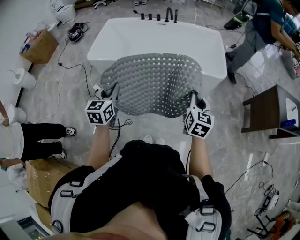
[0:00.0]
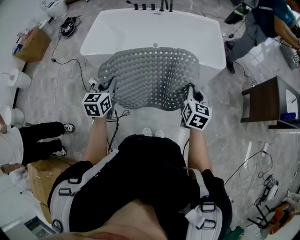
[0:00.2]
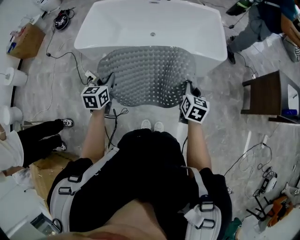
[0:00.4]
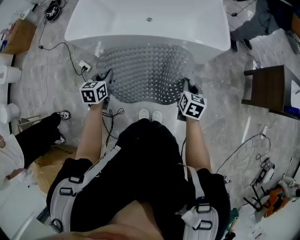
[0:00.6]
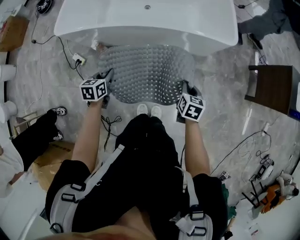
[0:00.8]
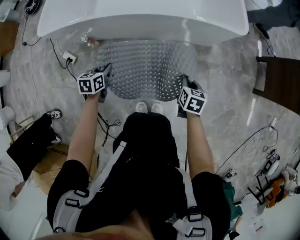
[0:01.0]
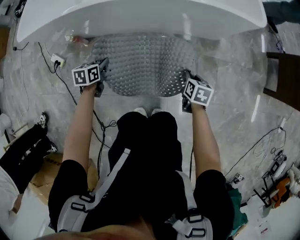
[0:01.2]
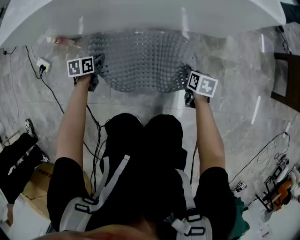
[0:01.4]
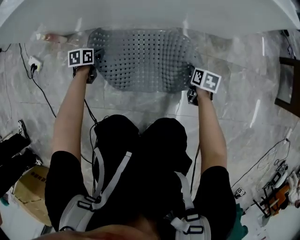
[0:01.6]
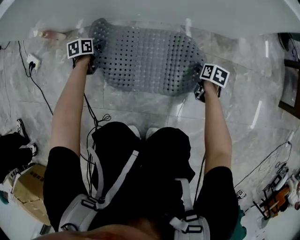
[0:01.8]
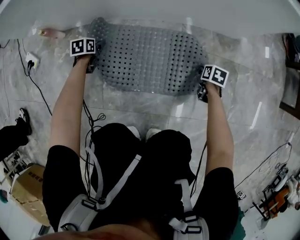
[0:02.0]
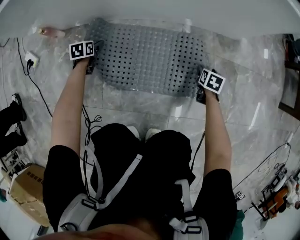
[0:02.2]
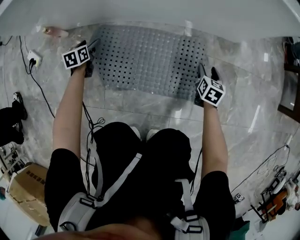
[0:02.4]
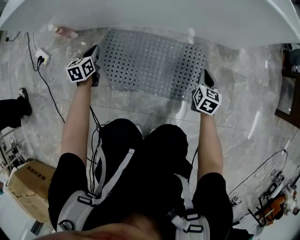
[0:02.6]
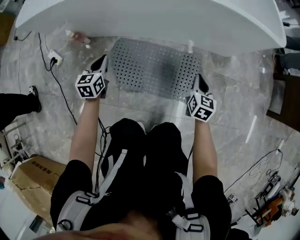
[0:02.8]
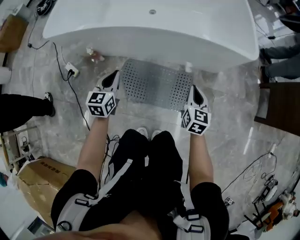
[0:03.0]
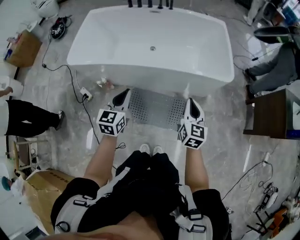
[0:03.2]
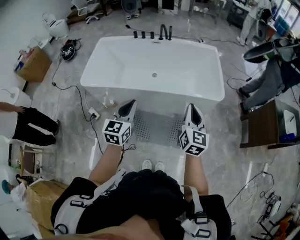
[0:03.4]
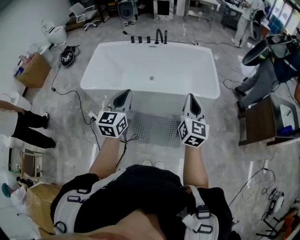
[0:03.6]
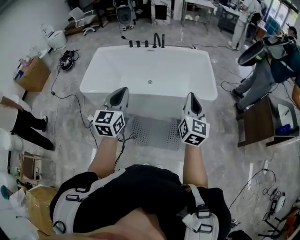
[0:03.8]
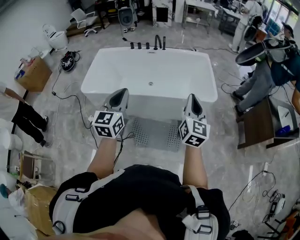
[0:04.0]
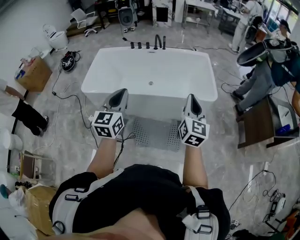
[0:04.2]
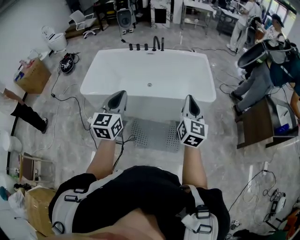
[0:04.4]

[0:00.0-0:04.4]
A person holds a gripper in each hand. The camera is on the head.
0:00.0 to 0:01.4: Both grippers move downward, about 70 cm. The left gripper tilts its fingers some 40 degrees downward. The right gripper angles its fingers downward, by about 40 degrees.
0:01.4 to 0:03.0: The two grippers go roughly 35 cm upward. The left gripper swivels some 40 degrees, and opens and closes again. The right gripper changes its angle by about 40 degrees, and opens and closes again.
0:03.0 to 0:04.4: Both grippers travel together upward, approximately 50 cm. The right gripper rotates approximately 30 degrees. Meanwhile the left gripper swivels roughly 20 degrees.

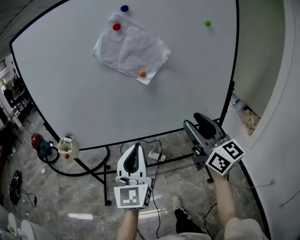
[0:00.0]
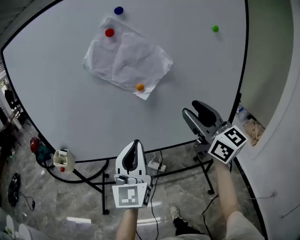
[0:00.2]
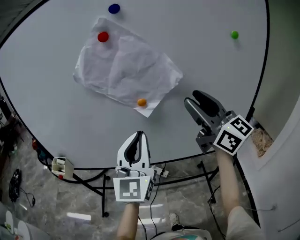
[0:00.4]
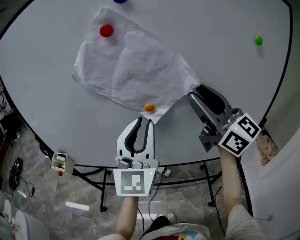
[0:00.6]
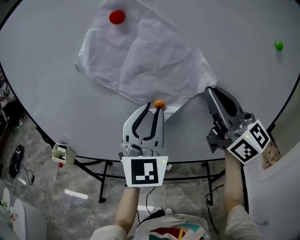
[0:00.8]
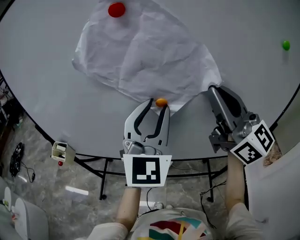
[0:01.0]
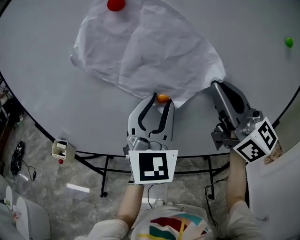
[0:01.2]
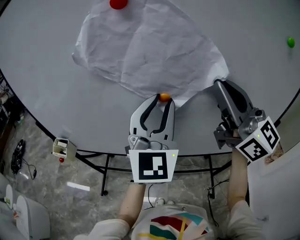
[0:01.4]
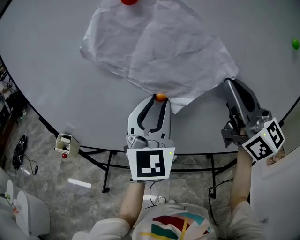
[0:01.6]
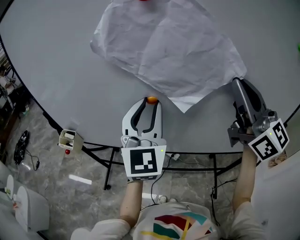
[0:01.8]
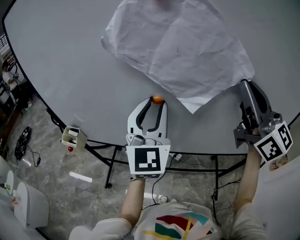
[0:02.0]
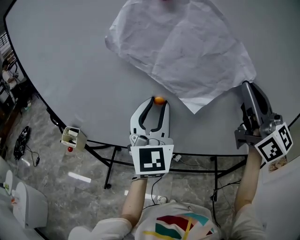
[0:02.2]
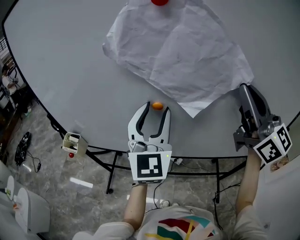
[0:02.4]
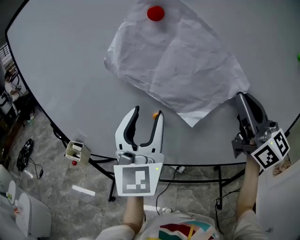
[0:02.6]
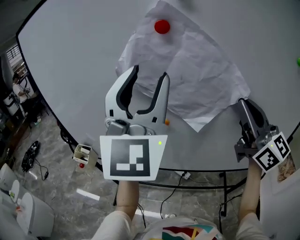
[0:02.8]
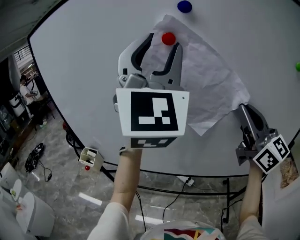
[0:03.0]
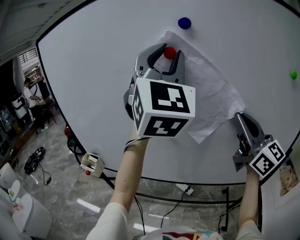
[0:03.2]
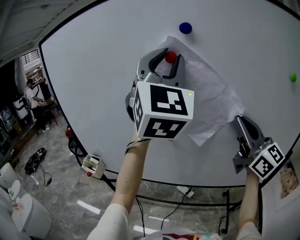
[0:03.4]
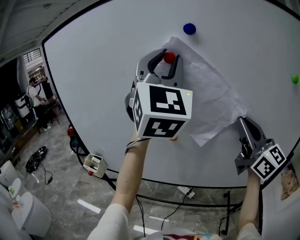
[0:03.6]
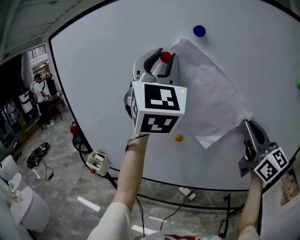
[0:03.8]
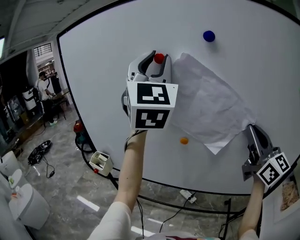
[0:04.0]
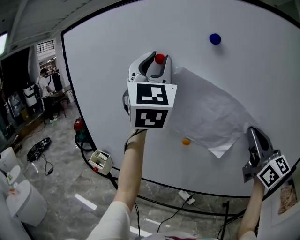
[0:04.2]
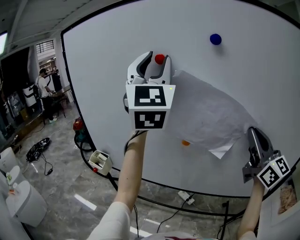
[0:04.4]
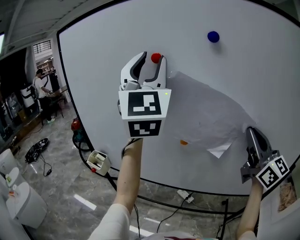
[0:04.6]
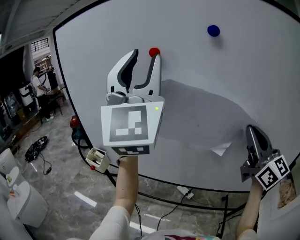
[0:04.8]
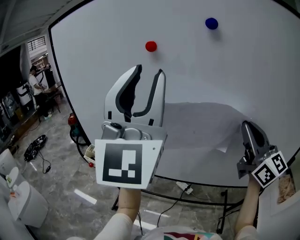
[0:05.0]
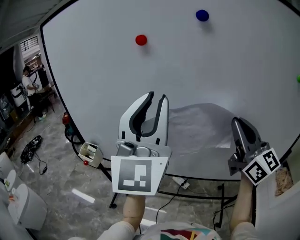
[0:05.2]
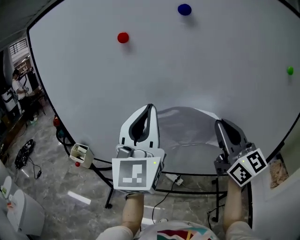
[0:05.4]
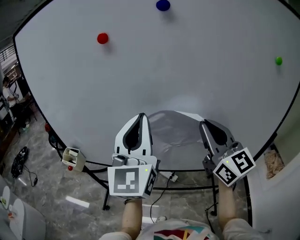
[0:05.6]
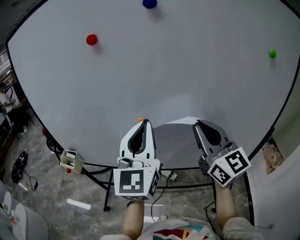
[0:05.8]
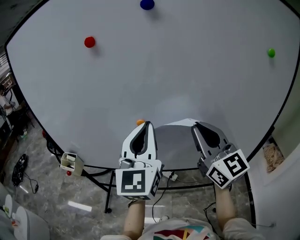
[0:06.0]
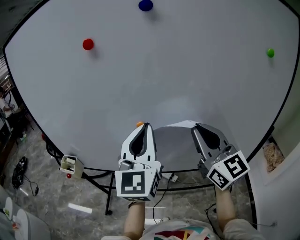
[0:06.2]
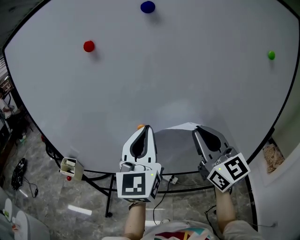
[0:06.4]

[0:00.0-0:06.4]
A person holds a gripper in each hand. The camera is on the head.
0:00.0 to 0:01.6: The right gripper heads forward and upward, covering some 30 cm, and closes, while the left gripper travels forward by about 30 cm, turns by approximately 20 degrees, and opens its fingers.
0:01.6 to 0:03.2: The left gripper moves upward, about 25 cm.
0:03.2 to 0:04.8: The left gripper travels to the left by some 10 cm.
0:04.8 to 0:06.4: The right gripper goes roughly 5 cm downward, while the left gripper is displaced downward and to the right by some 25 cm, turns by approximately 30 degrees, and closes up.

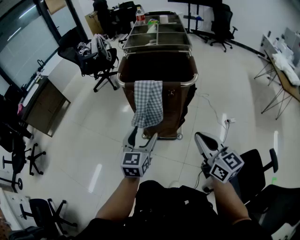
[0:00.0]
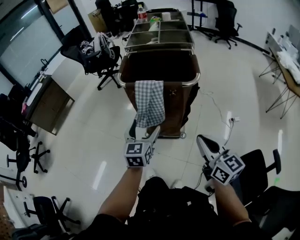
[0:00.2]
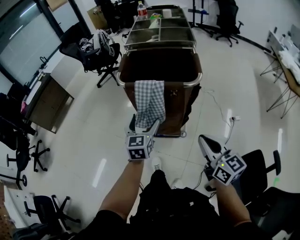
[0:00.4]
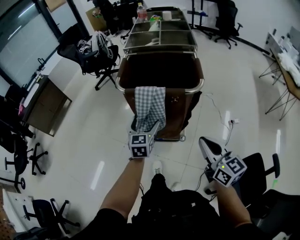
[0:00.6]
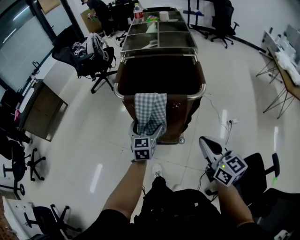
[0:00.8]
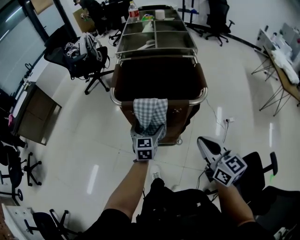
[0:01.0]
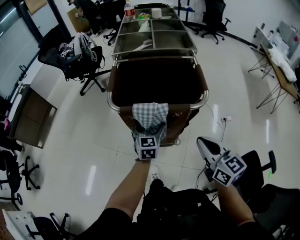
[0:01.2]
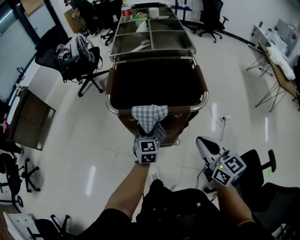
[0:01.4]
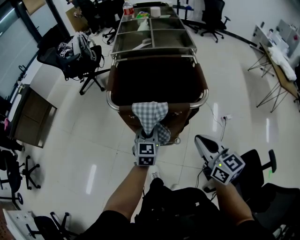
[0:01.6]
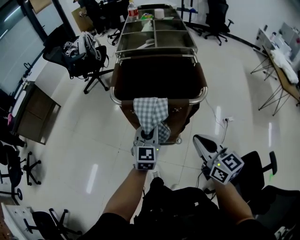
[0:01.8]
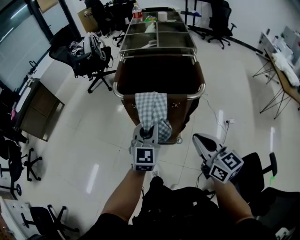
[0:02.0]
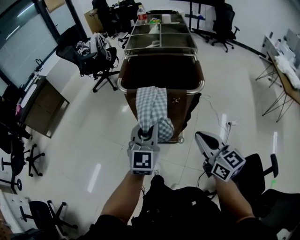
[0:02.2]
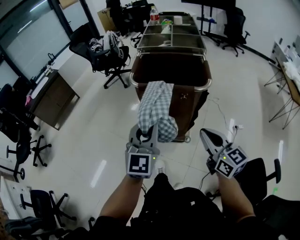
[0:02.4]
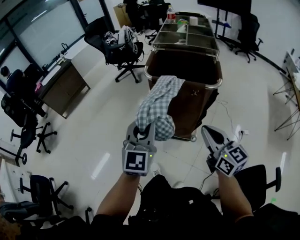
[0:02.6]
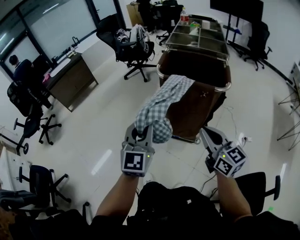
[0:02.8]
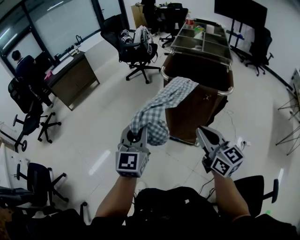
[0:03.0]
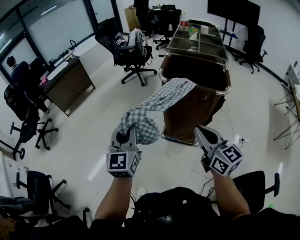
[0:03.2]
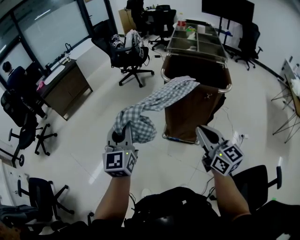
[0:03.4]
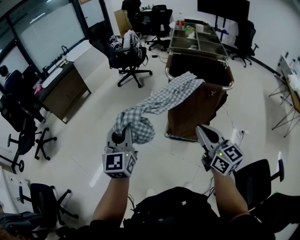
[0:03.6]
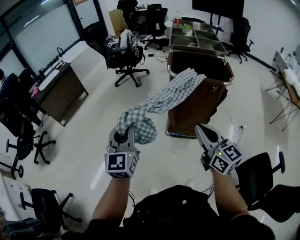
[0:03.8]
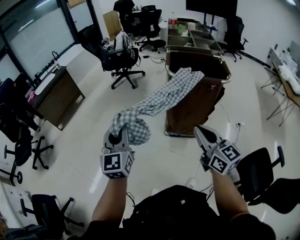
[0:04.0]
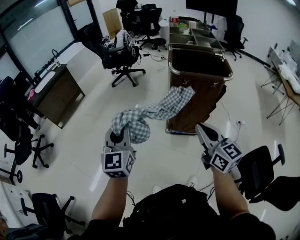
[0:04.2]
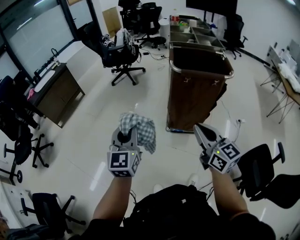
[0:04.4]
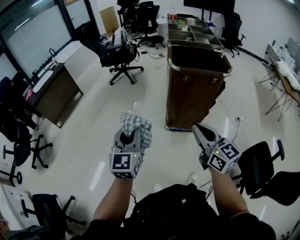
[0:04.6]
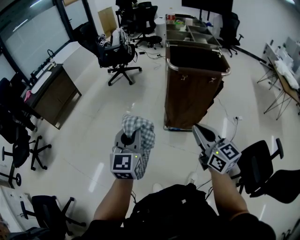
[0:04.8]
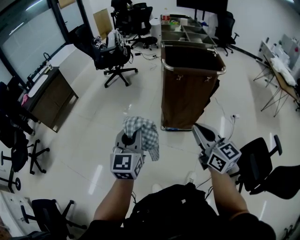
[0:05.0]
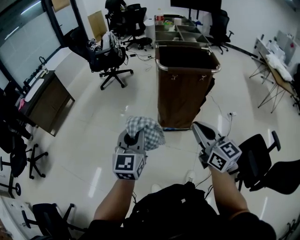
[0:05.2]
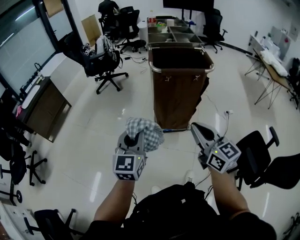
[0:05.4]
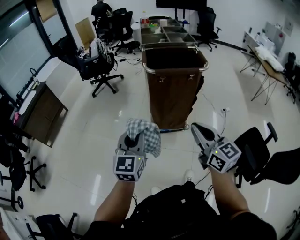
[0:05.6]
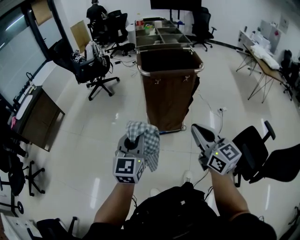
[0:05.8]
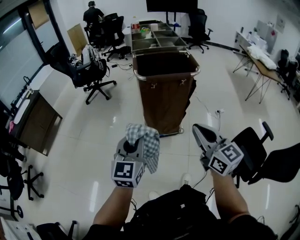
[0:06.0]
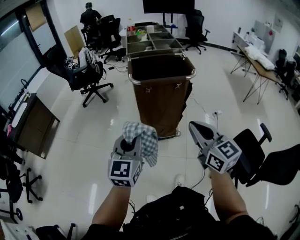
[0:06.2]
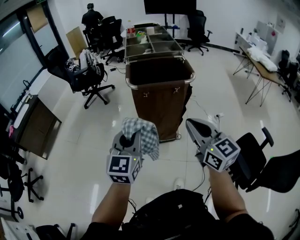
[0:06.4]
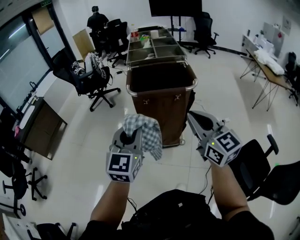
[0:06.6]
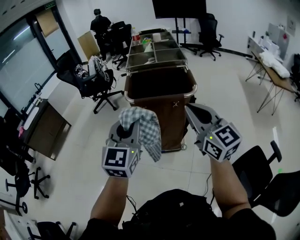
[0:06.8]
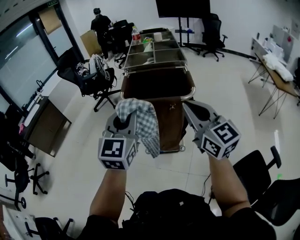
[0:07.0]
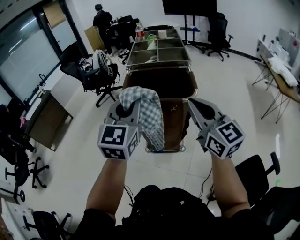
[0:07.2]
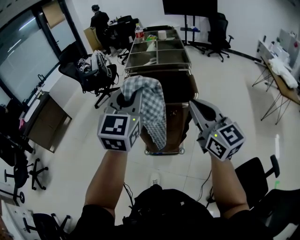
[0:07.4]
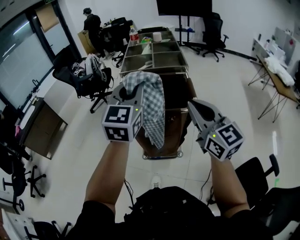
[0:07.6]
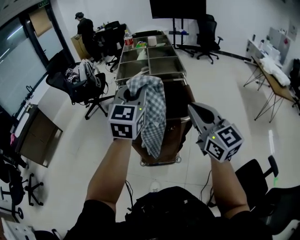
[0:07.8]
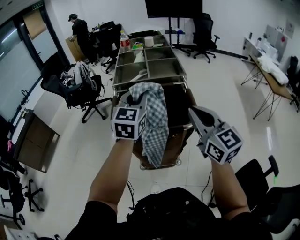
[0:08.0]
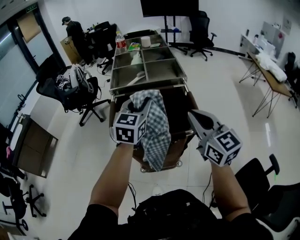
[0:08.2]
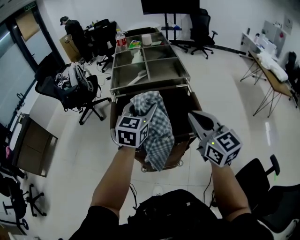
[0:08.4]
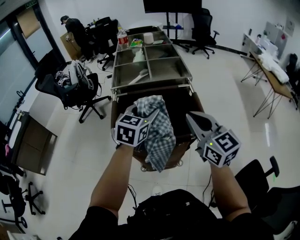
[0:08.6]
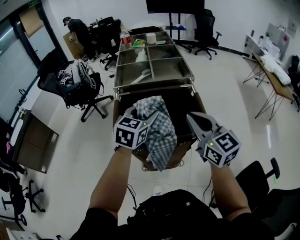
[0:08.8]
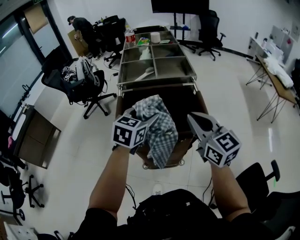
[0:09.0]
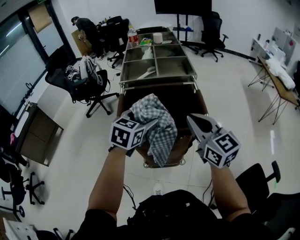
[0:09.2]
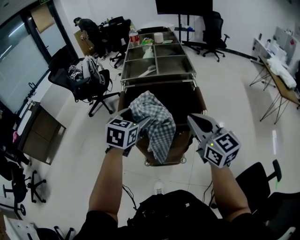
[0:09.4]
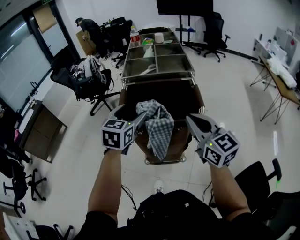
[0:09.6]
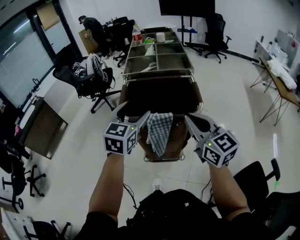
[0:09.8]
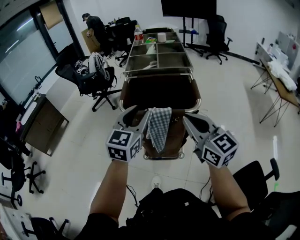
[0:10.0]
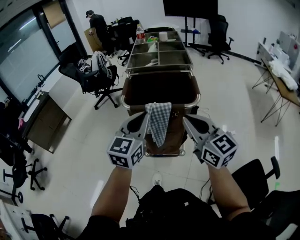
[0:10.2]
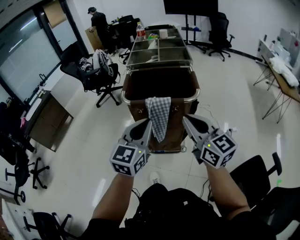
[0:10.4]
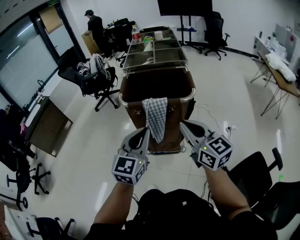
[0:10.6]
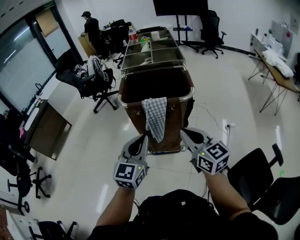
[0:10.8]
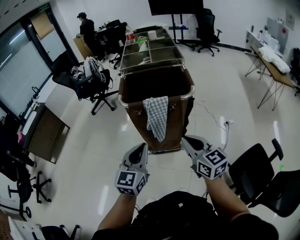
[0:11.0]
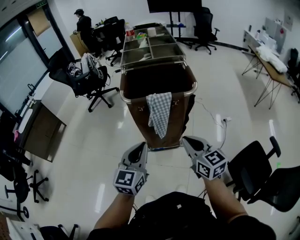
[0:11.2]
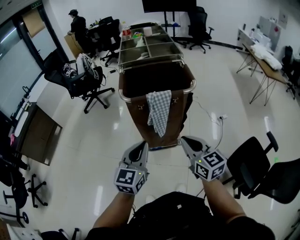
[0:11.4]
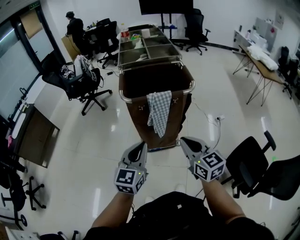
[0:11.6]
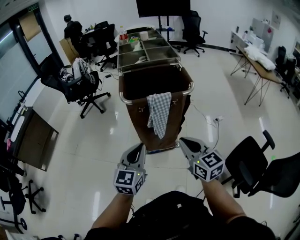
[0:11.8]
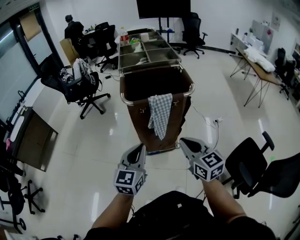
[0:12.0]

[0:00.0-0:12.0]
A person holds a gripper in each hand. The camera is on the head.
0:00.0 to 0:01.6: The right gripper travels forward by some 15 cm, while the left gripper travels forward and downward by about 20 cm, and closes its fingers.
0:01.6 to 0:03.0: The right gripper goes some 15 cm to the left, backward and upward, and swivels about 20 degrees, while the left gripper is displaced backward, to the left and upward by some 35 cm, and changes its angle by approximately 30 degrees.
0:03.0 to 0:04.4: The two grippers go approximately 20 cm to the left.
0:04.4 to 0:06.0: The right gripper travels to the right by roughly 10 cm, while the left gripper moves to the right, about 15 cm, and rotates about 20 degrees.
0:06.0 to 0:07.6: Both grippers travel together forward, to the right and upward, approximately 35 cm.
0:07.6 to 0:09.0: The right gripper goes approximately 15 cm forward and downward. Meanwhile the left gripper goes about 20 cm downward and forward, rotates about 30 degrees, and opens up.
0:09.0 to 0:10.4: Both grippers travel together backward, approximately 20 cm. The left gripper turns by about 20 degrees, and closes its fingers.
0:10.4 to 0:12.0: The left gripper moves to the left, downward and backward, roughly 15 cm, while the right gripper is displaced downward, to the left and backward by roughly 15 cm, and turns by about 20 degrees.
